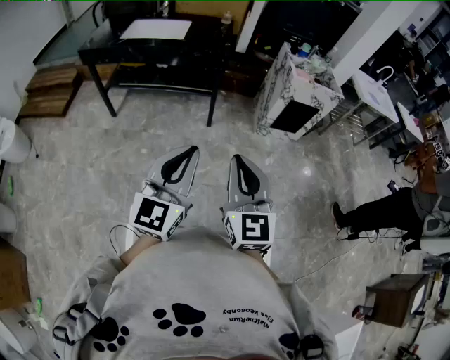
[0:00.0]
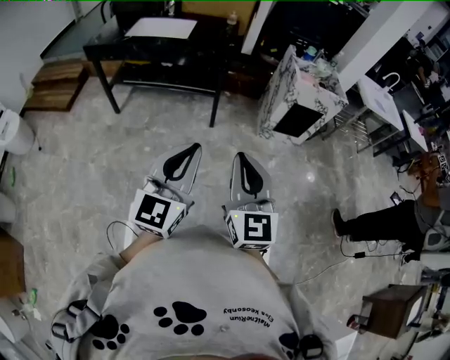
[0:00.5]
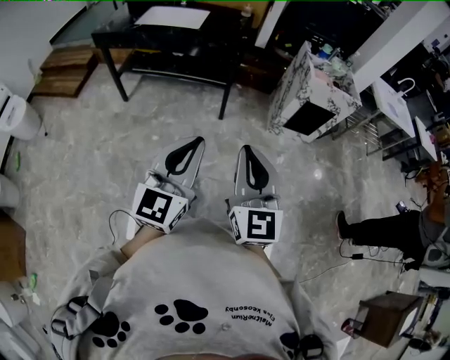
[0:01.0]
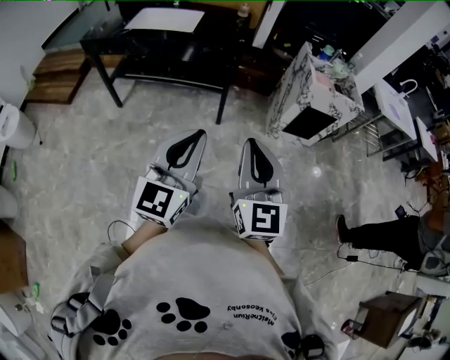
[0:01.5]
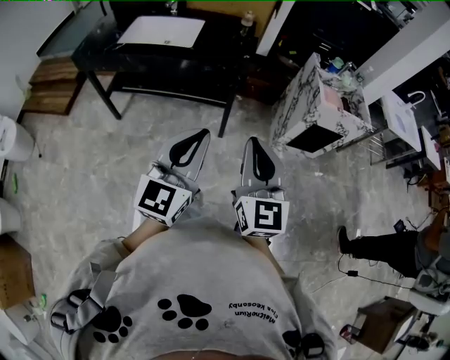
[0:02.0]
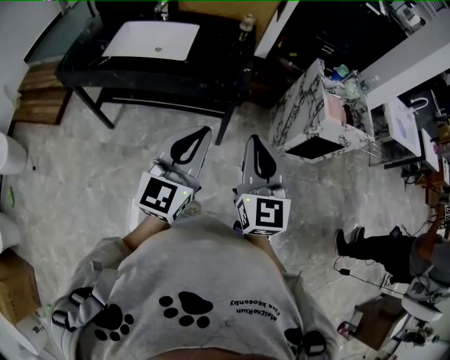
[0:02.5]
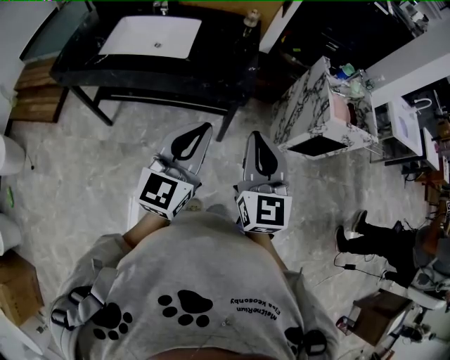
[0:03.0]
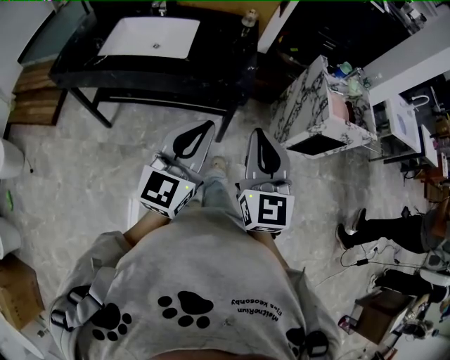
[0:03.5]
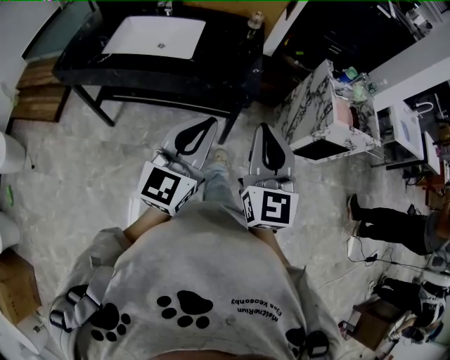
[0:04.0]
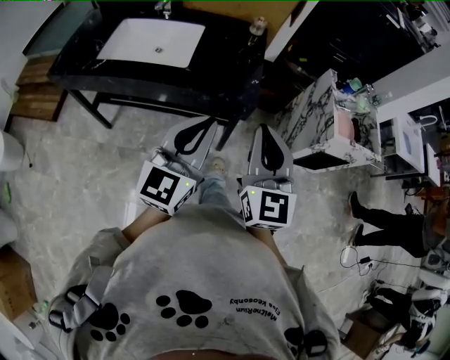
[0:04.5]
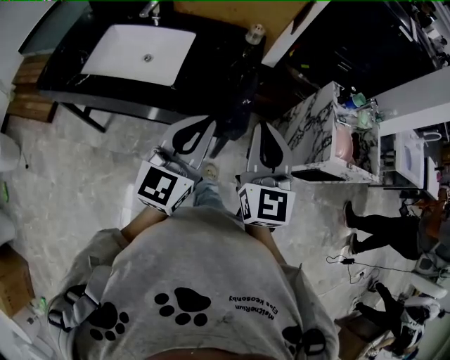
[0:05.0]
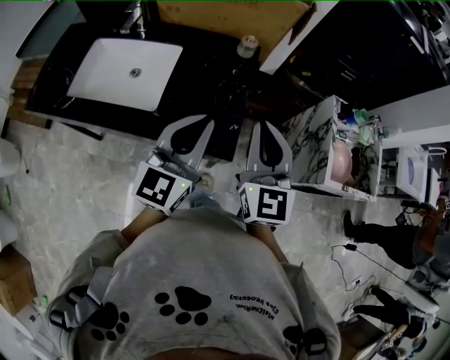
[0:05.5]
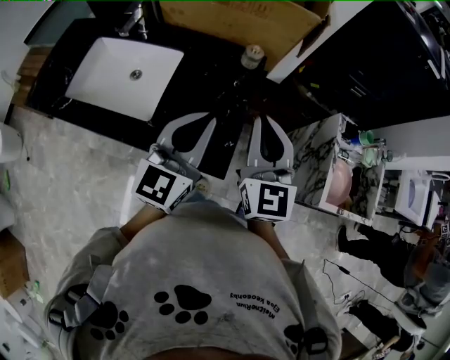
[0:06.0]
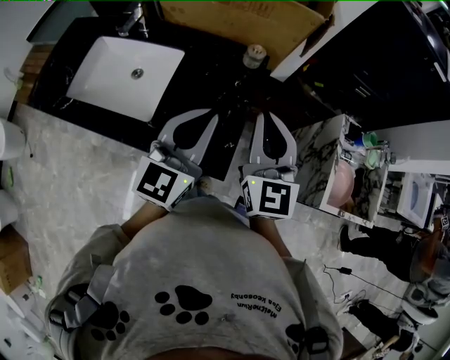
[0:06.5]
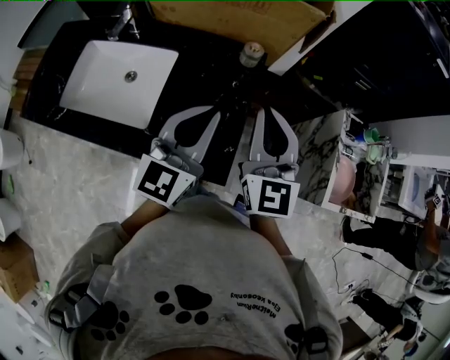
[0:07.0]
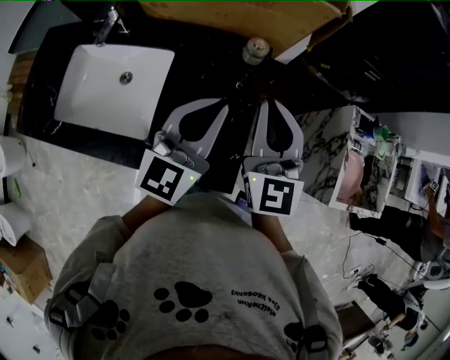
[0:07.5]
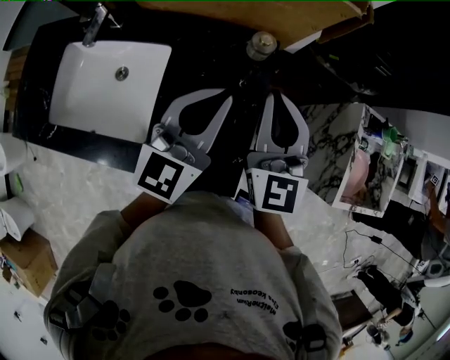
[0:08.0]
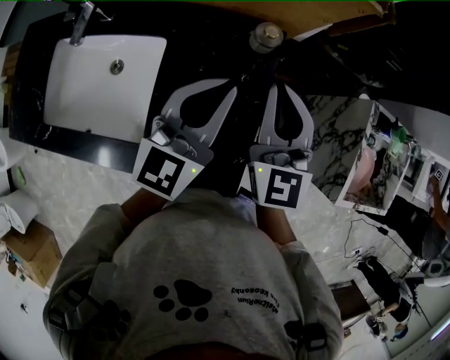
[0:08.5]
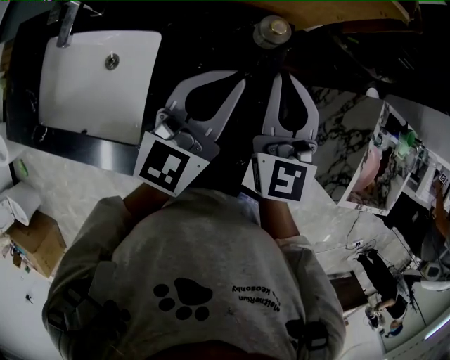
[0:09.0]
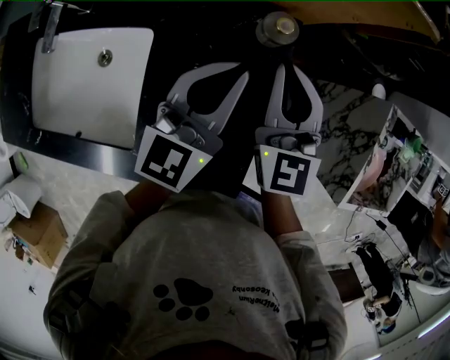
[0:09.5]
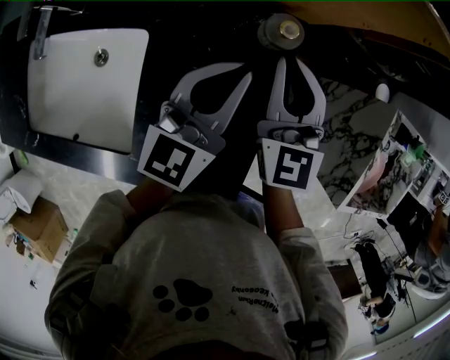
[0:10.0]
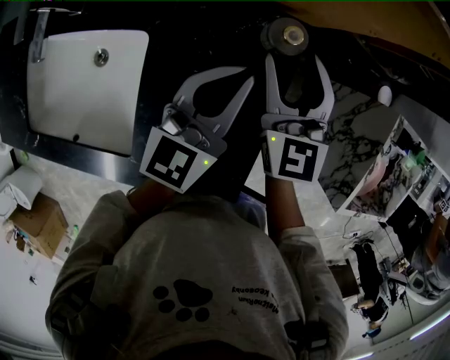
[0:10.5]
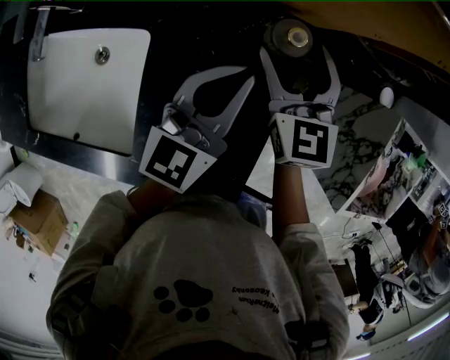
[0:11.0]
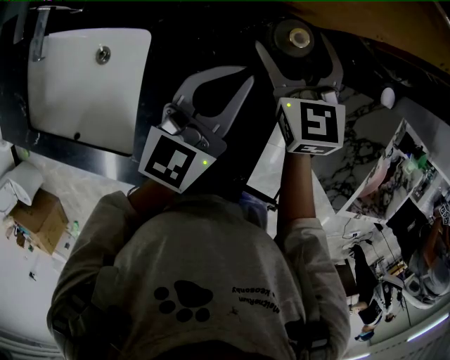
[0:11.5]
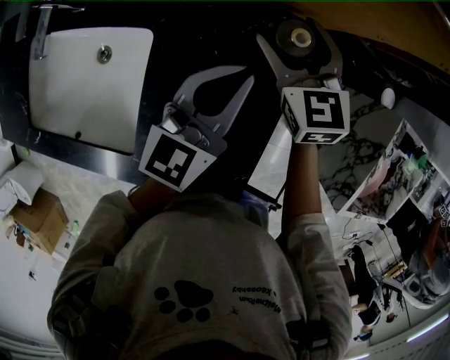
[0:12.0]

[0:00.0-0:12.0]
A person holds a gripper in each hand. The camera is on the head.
0:00.0 to 0:02.0: Both grippers travel together forward, some 30 cm.
0:02.0 to 0:04.0: Both grippers move forward, some 20 cm.
0:04.0 to 0:06.0: Both grippers move forward, about 40 cm.
0:06.0 to 0:08.0: Both grippers move forward, about 15 cm.
0:08.0 to 0:10.0: The two grippers go approximately 15 cm downward and forward.
0:10.0 to 0:12.0: The right gripper shifts approximately 10 cm downward and forward, turns by about 20 degrees, and opens its fingers.

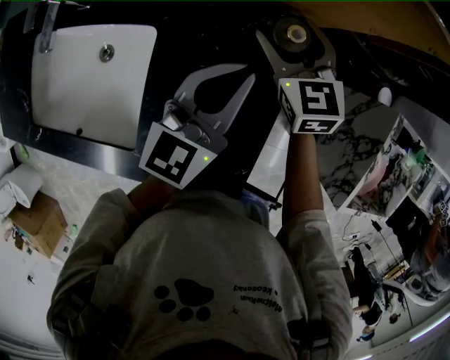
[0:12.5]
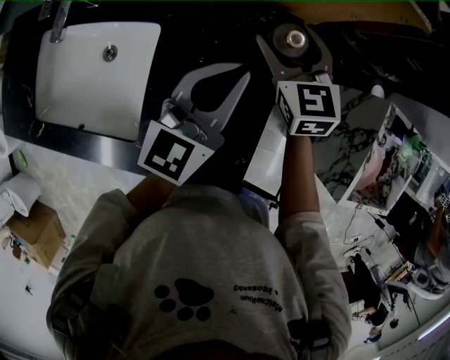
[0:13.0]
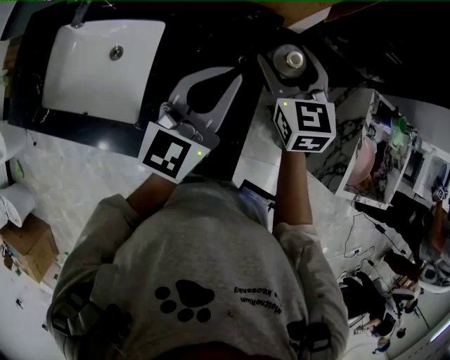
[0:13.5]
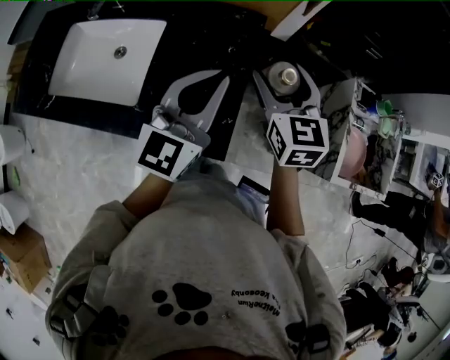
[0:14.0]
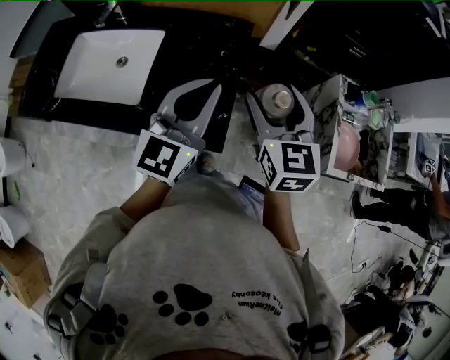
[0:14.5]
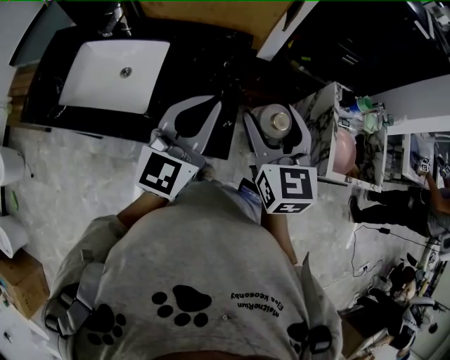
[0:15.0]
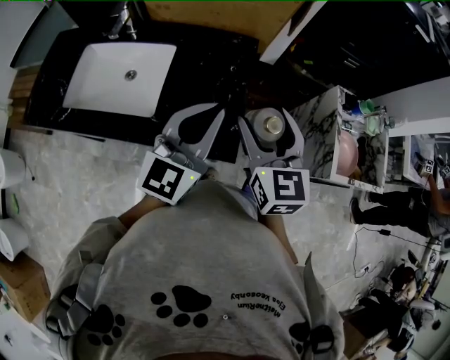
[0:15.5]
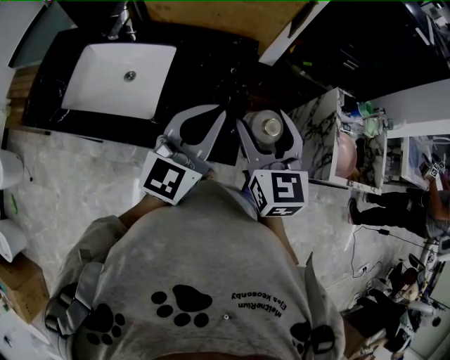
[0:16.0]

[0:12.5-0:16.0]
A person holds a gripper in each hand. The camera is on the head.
0:12.5 to 0:14.5: The two grippers go some 30 cm backward and upward.
0:14.5 to 0:16.0: The right gripper heads to the left, covering roughly 5 cm.

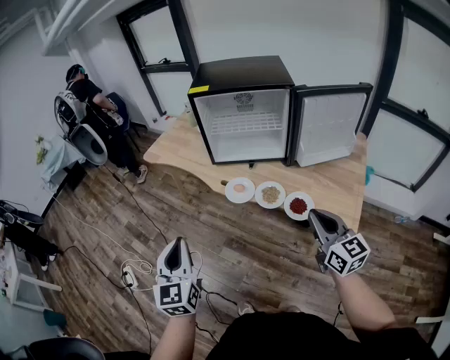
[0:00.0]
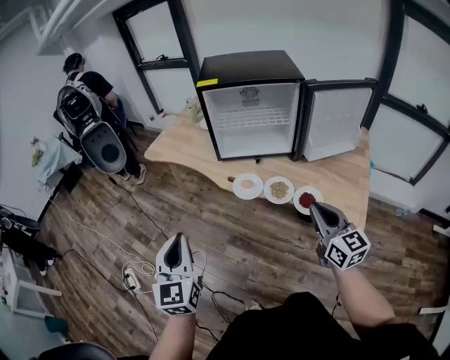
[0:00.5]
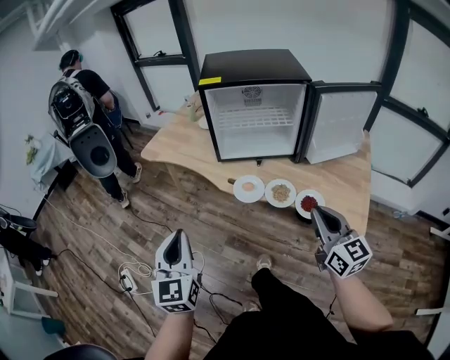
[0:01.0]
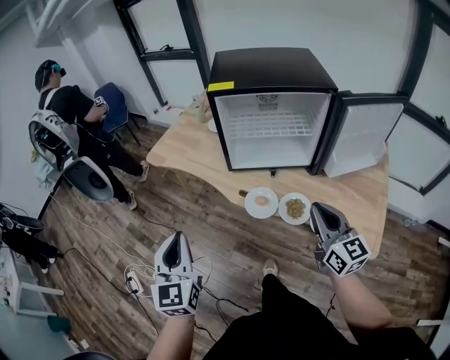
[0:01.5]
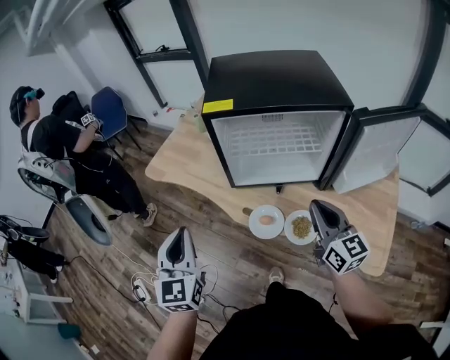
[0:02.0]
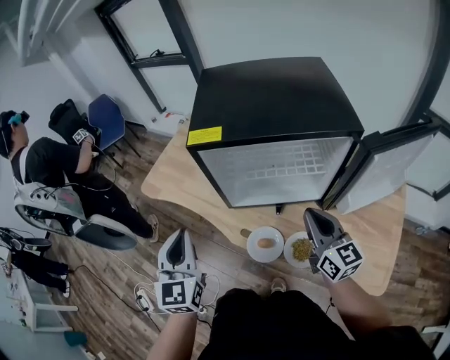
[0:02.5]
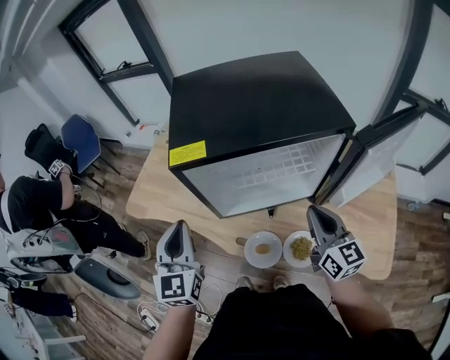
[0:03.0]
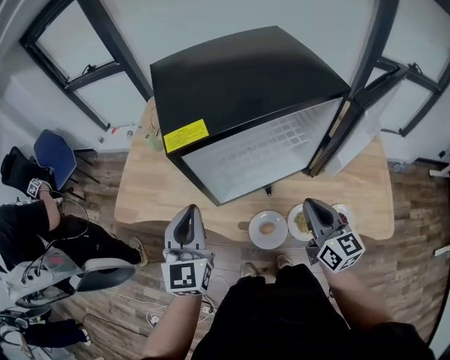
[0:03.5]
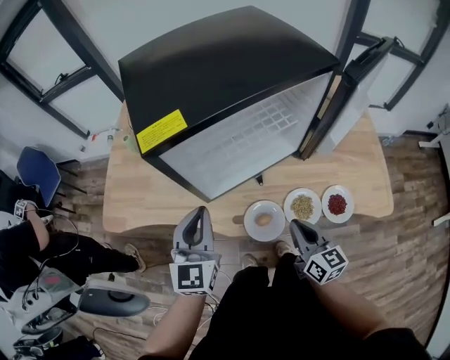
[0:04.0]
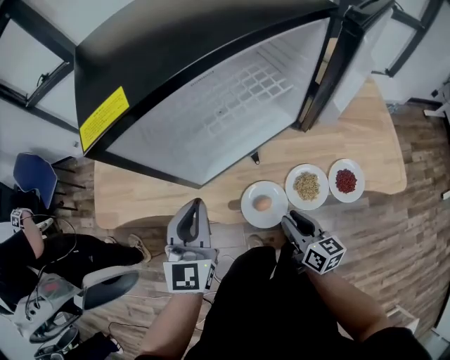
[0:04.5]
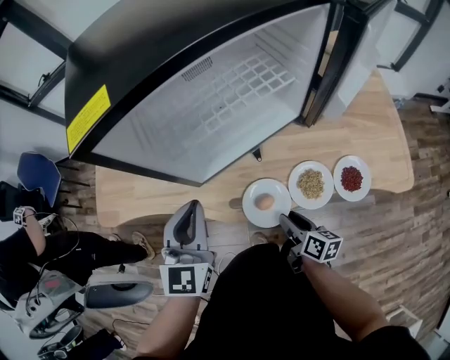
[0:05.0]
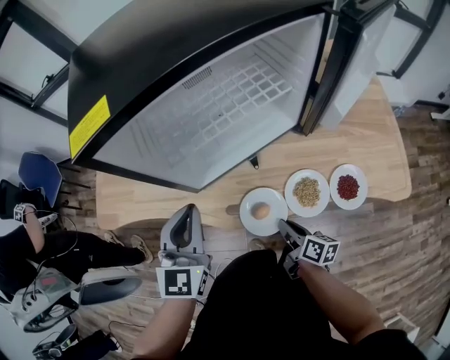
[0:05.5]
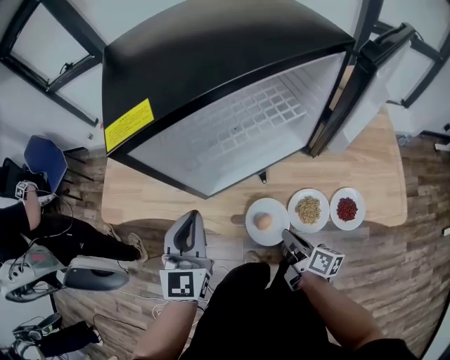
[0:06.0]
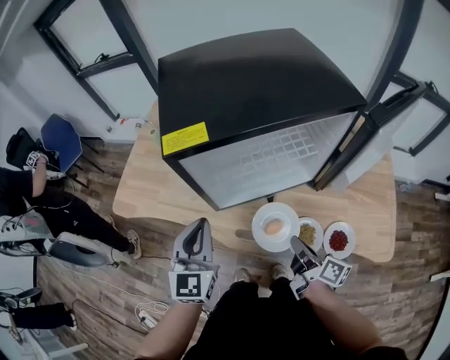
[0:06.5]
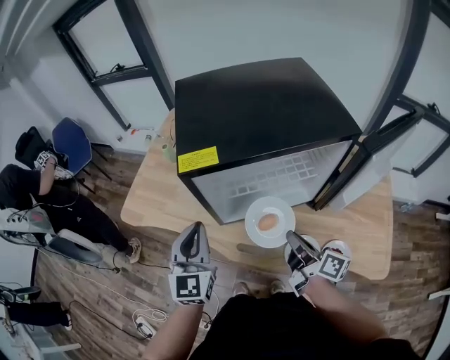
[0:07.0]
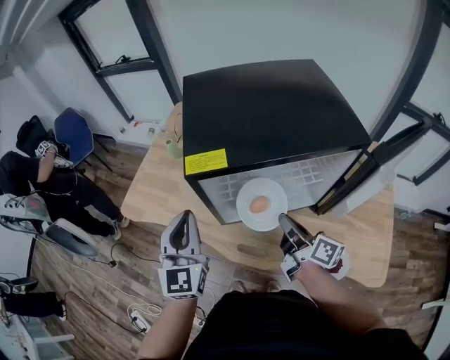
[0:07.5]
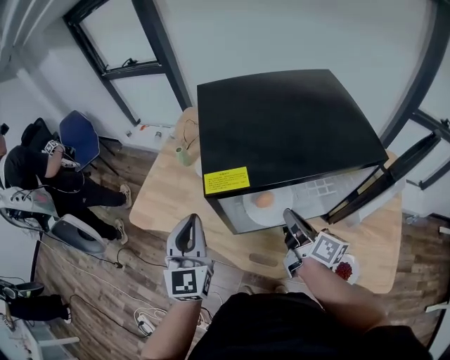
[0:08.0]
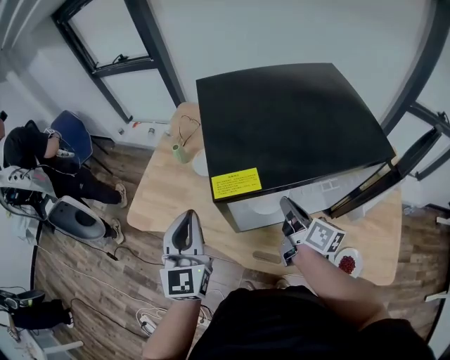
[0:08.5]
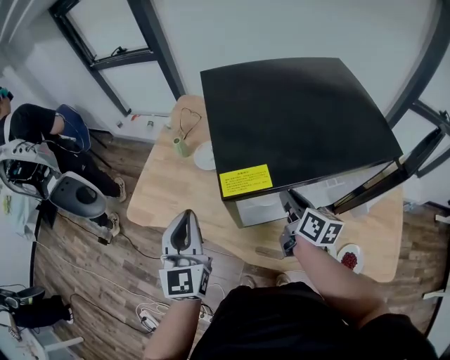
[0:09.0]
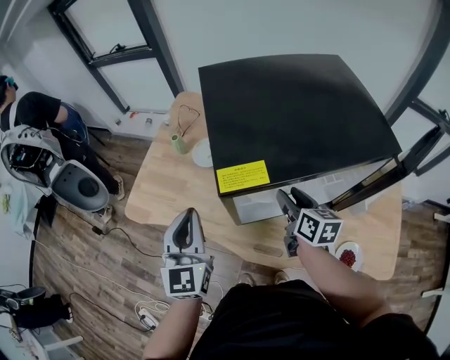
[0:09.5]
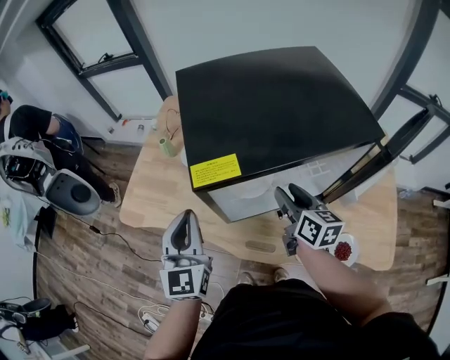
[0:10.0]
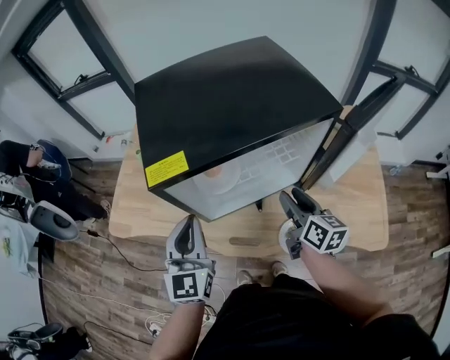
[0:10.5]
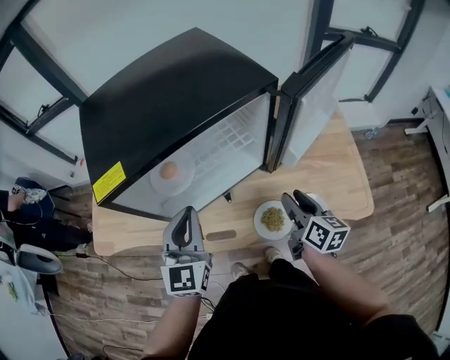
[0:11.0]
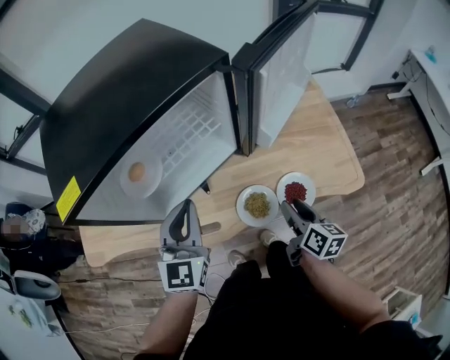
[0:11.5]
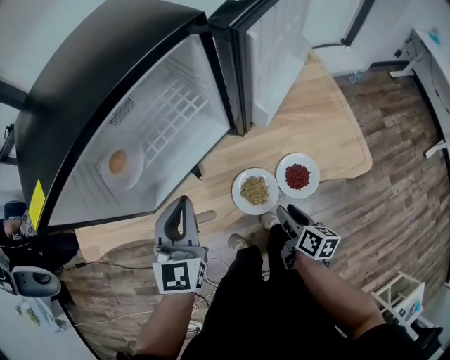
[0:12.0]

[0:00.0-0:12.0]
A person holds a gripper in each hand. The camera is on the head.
0:00.0 to 0:02.0: Both grippers move forward, about 25 cm.
0:02.0 to 0:04.0: The left gripper moves some 25 cm, and rotates roughly 40 degrees, while the right gripper goes approximately 15 cm downward, and rotates about 30 degrees.
0:04.0 to 0:06.0: The right gripper moves downward, about 10 cm, rotates around the line of its fingers by approximately 40 degrees, clockwise from behind, and opens and closes again.
0:06.0 to 0:08.0: The right gripper is displaced upward and forward by about 30 cm, and changes its angle by about 20 degrees. Meanwhile the left gripper travels upward, to the left and forward by approximately 15 cm, and turns by approximately 20 degrees.
0:08.0 to 0:10.0: The right gripper changes its angle by approximately 30 degrees, and opens its fingers.
0:10.0 to 0:12.0: The right gripper shifts by roughly 40 cm, and changes its angle by about 40 degrees, while the left gripper moves some 30 cm, and swivels some 30 degrees.
